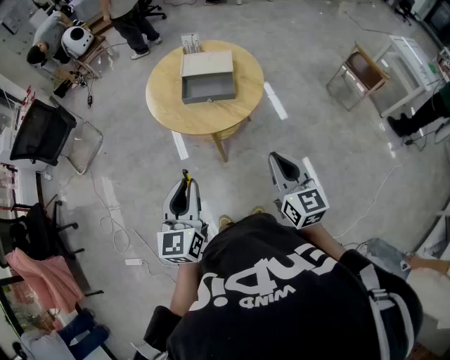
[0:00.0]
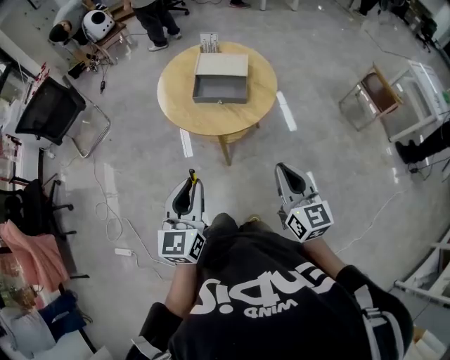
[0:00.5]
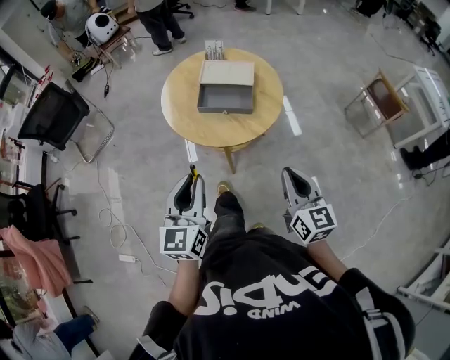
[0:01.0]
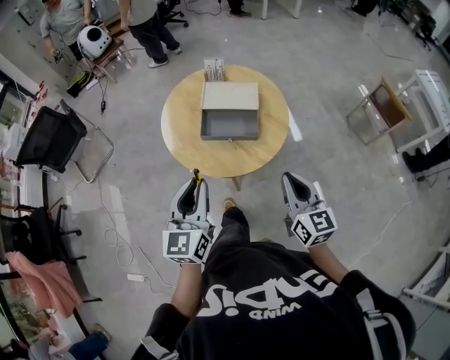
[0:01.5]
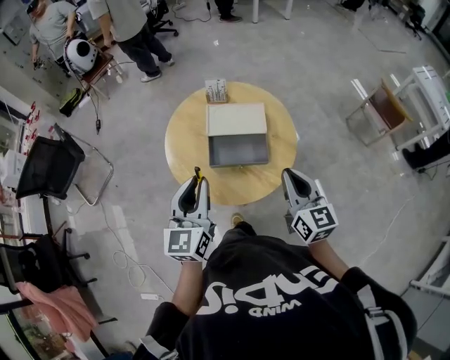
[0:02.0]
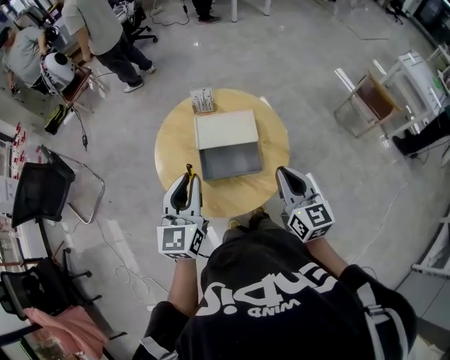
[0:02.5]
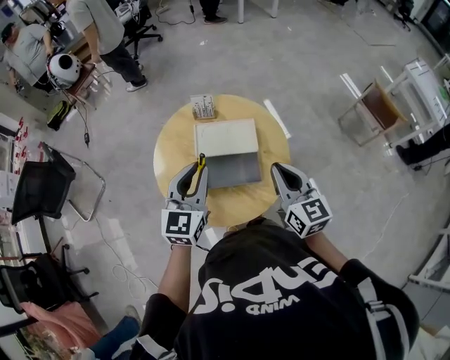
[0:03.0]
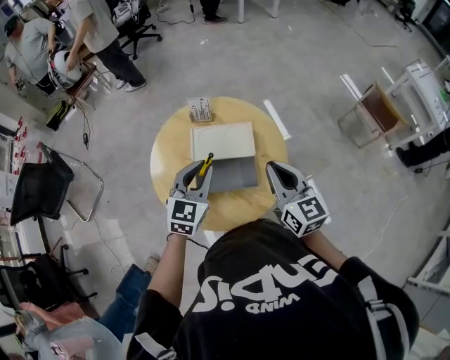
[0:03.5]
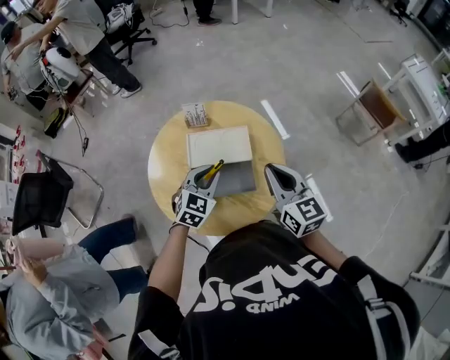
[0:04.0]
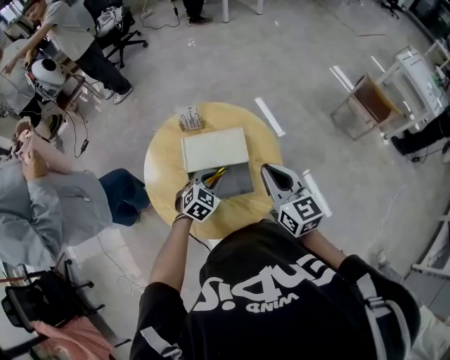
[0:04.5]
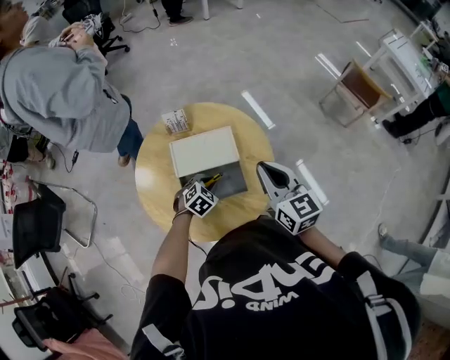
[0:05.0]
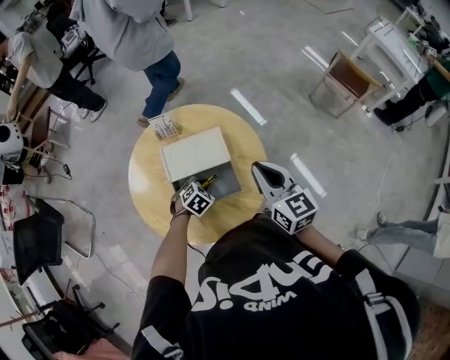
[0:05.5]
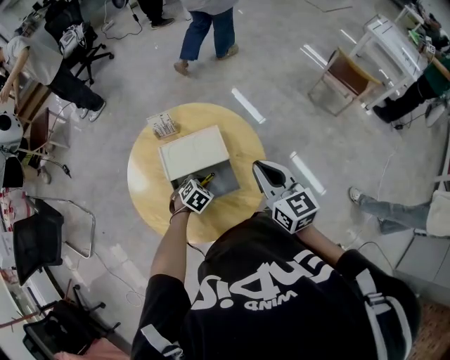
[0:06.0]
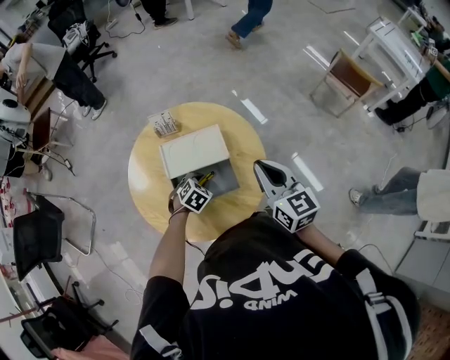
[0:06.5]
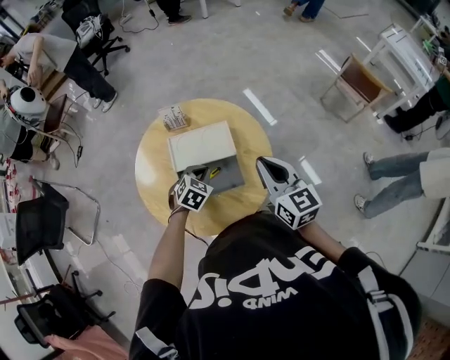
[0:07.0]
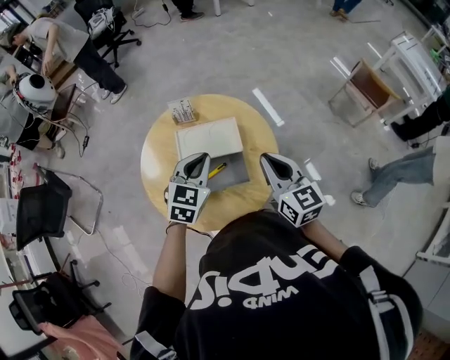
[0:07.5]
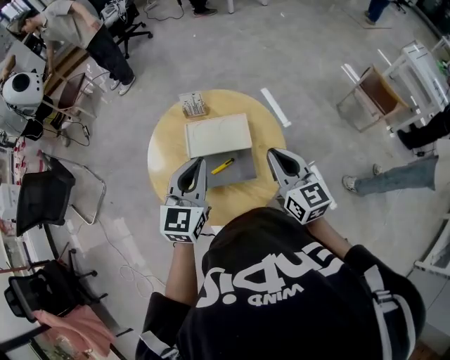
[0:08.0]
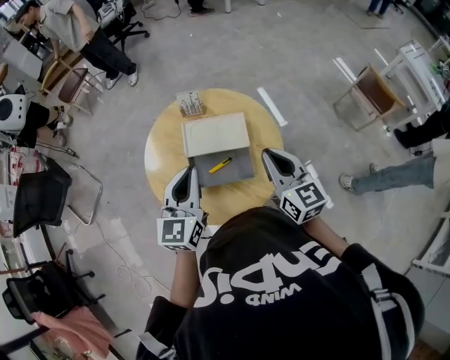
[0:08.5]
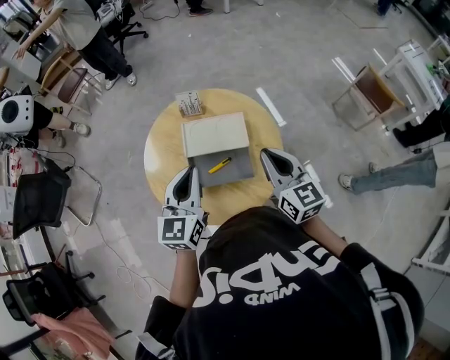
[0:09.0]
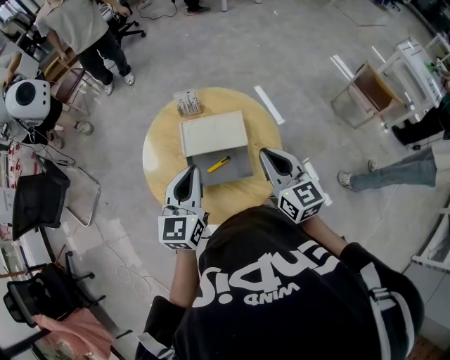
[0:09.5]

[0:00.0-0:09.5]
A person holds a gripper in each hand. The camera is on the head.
0:00.0 to 0:02.0: Both grippers travel together forward, approximately 30 cm.
0:02.0 to 0:04.0: The left gripper heads forward, downward and to the right, covering about 25 cm, and turns by roughly 40 degrees. Meanwhile the right gripper moves forward, approximately 15 cm.
0:04.0 to 0:05.5: The left gripper moves downward, roughly 20 cm, and points its fingers about 30 degrees further downward.
0:05.5 to 0:07.5: The left gripper heads upward, covering about 25 cm, and angles its fingers upward, by approximately 30 degrees.
0:07.5 to 0:09.5: The left gripper goes roughly 10 cm to the left, backward and upward, and swivels some 30 degrees.

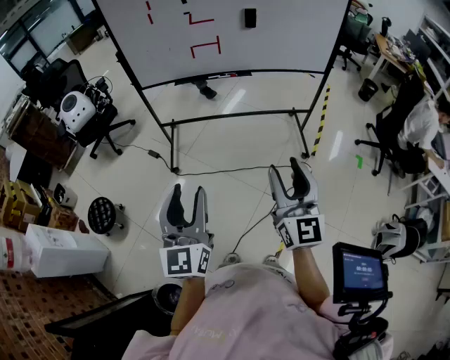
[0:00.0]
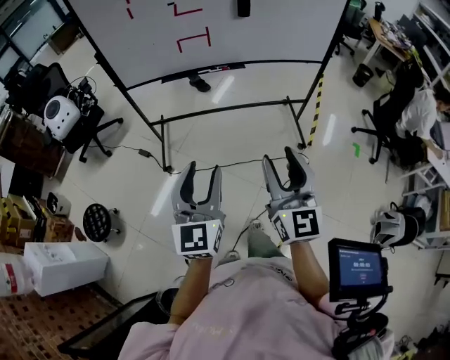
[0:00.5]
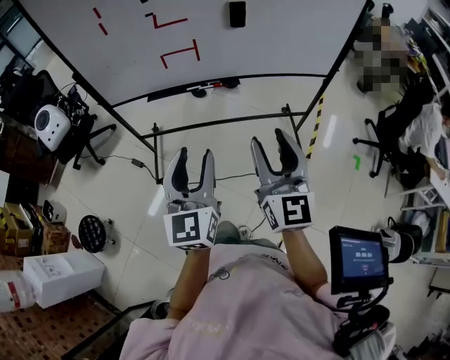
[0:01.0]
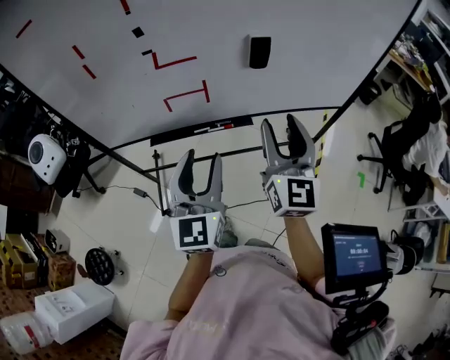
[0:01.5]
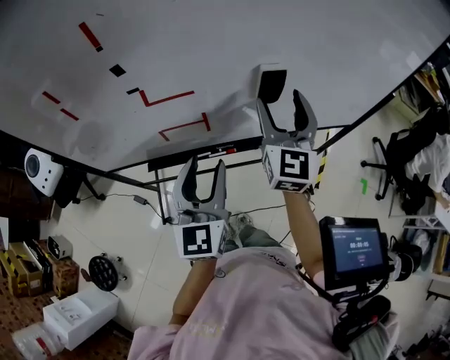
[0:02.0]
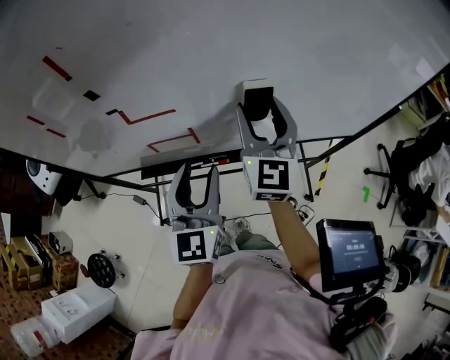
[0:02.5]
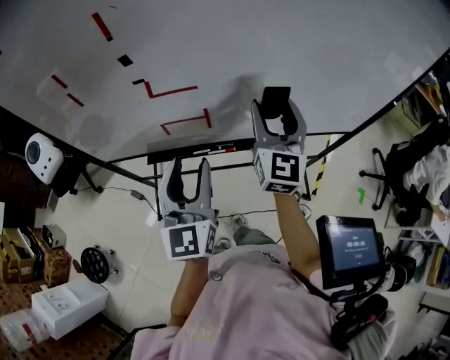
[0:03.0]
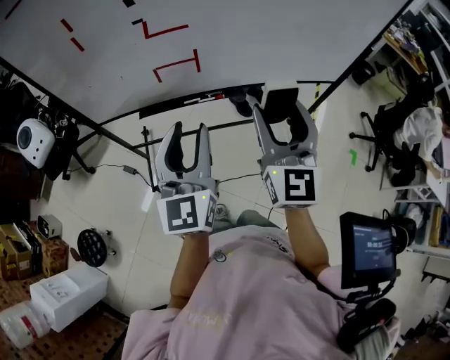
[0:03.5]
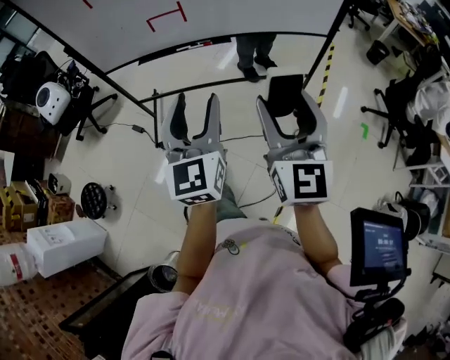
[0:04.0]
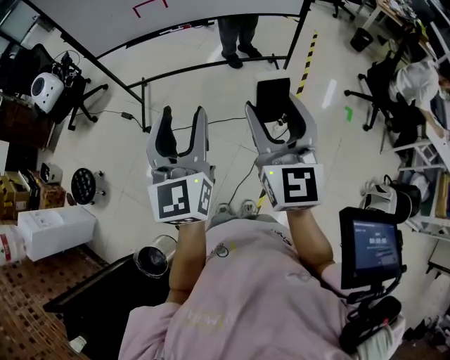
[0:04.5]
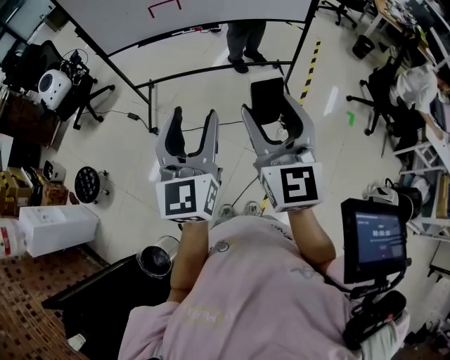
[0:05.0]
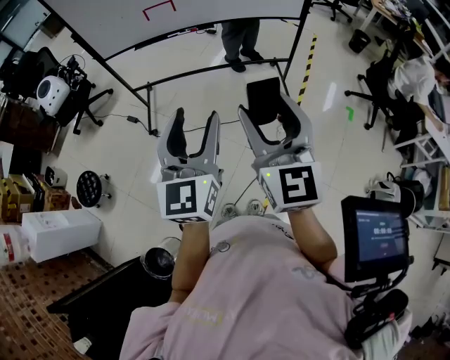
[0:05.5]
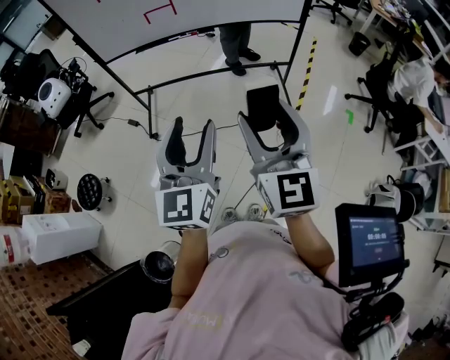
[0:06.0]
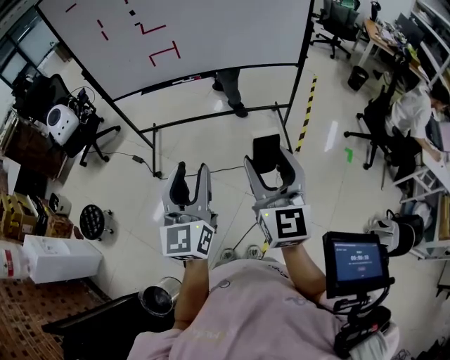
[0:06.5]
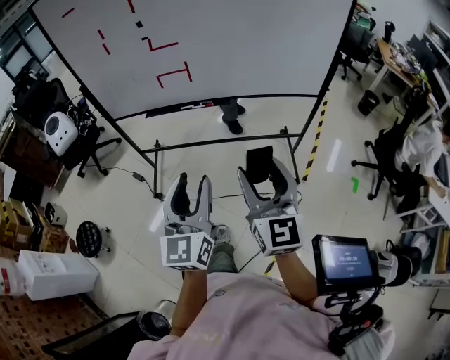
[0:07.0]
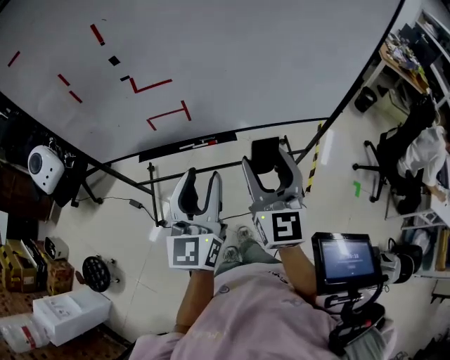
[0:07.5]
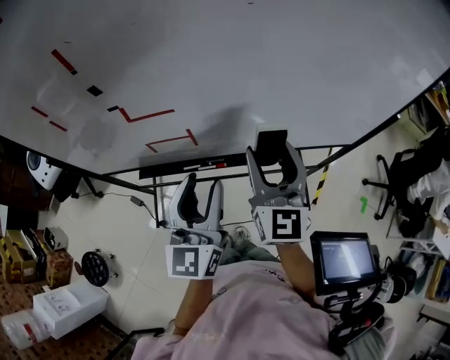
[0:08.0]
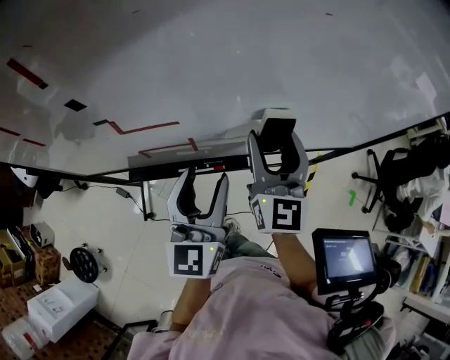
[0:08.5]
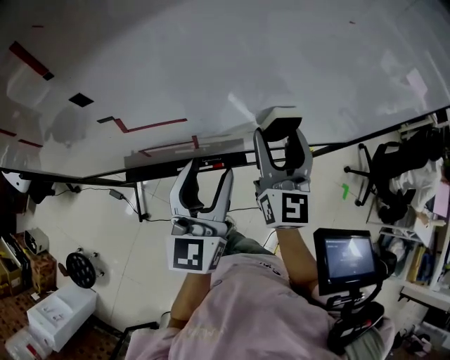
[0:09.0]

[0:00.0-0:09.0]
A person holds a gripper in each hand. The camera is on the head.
0:00.0 to 0:02.0: Both grippers are carried forward, some 70 cm.
0:02.0 to 0:04.5: Both grippers are carried backward, approximately 60 cm.
0:04.5 to 0:07.0: Both grippers move forward, some 20 cm.
0:07.0 to 0:09.0: The pair of grippers is taken forward, some 50 cm.

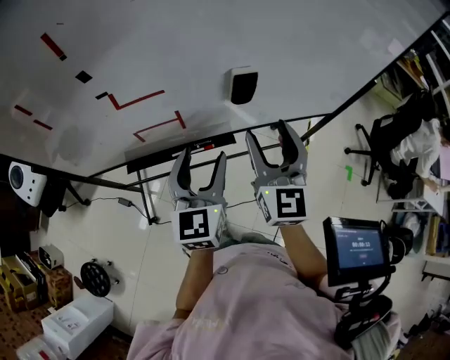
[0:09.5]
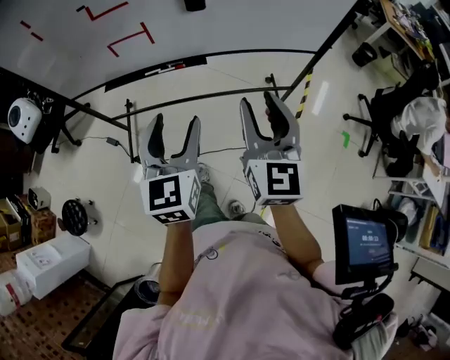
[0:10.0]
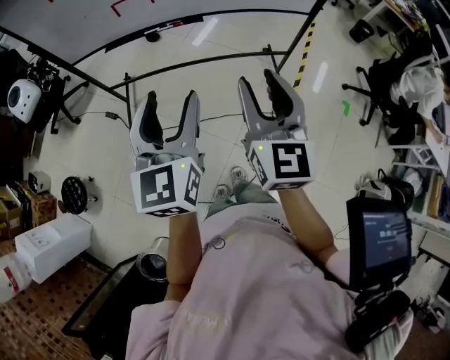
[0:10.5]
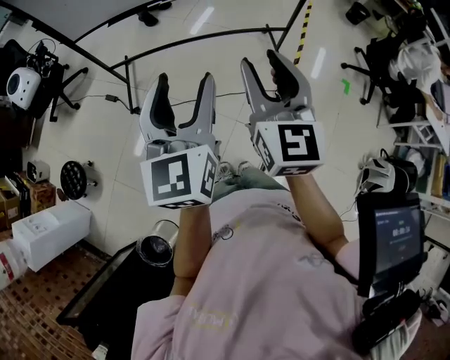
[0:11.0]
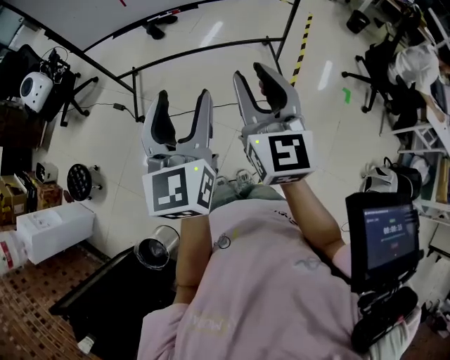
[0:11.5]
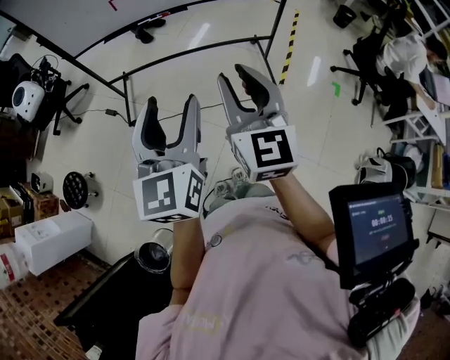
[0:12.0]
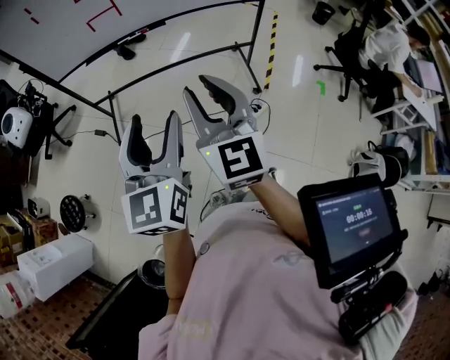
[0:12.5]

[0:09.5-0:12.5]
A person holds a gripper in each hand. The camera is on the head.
0:09.5 to 0:11.0: The two grippers travel together, backward, roughly 50 cm. The right gripper closes up.
0:11.0 to 0:12.5: The left gripper heads backward, covering about 5 cm.

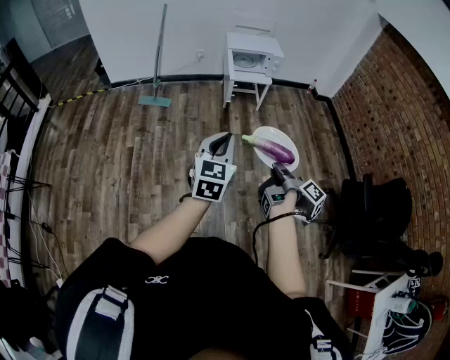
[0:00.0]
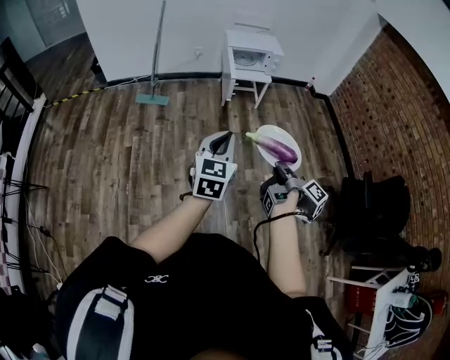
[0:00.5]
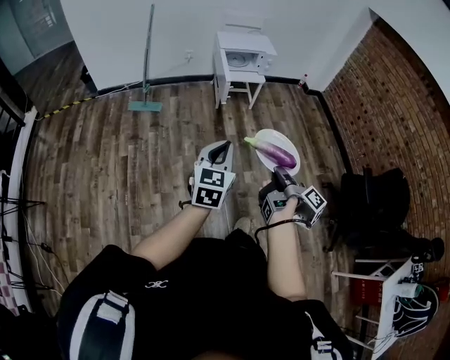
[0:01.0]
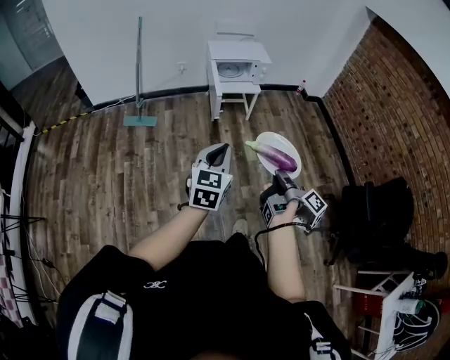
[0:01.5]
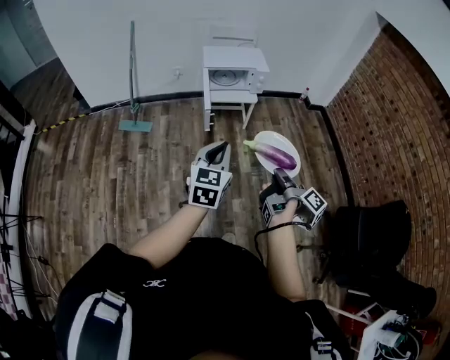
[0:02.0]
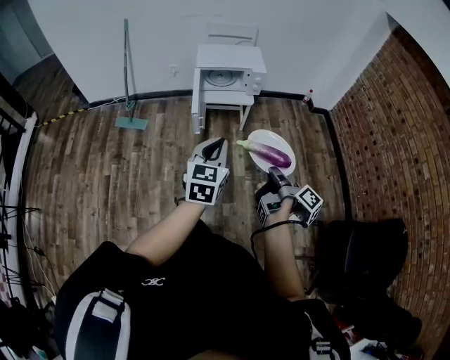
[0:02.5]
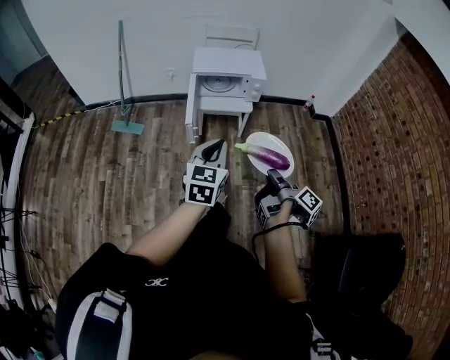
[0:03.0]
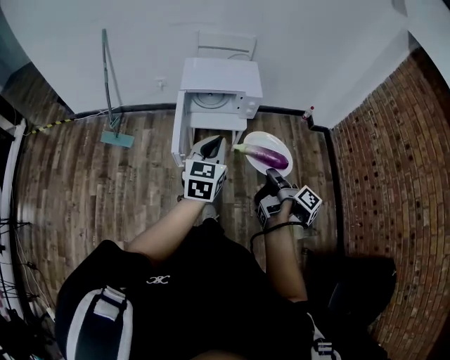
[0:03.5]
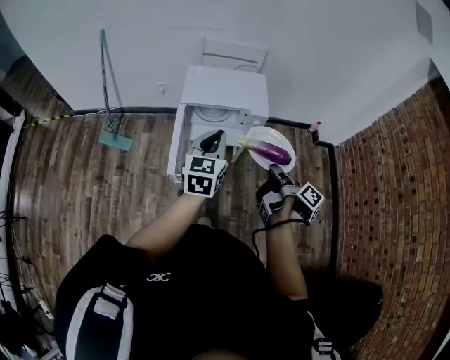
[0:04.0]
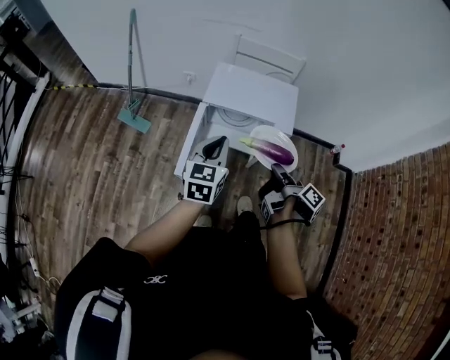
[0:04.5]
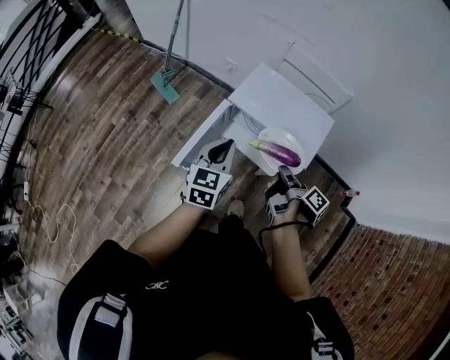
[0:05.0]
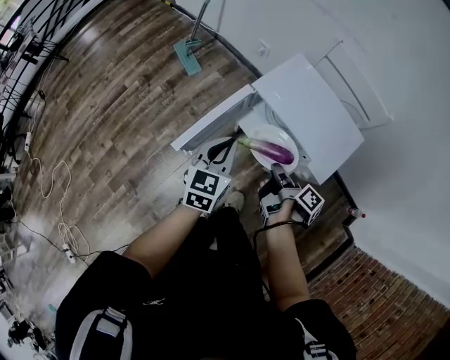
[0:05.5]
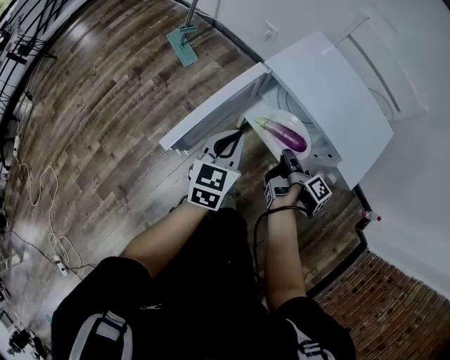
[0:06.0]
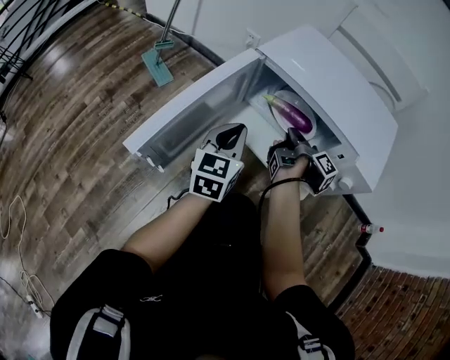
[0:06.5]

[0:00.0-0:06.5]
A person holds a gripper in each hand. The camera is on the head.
0:00.0 to 0:02.0: The left gripper ends up some 25 cm from where it was.
0:02.0 to 0:04.5: The left gripper moves approximately 50 cm, and swivels about 20 degrees.
0:04.5 to 0:06.5: The left gripper shifts some 40 cm downward, and changes its angle by about 20 degrees.
